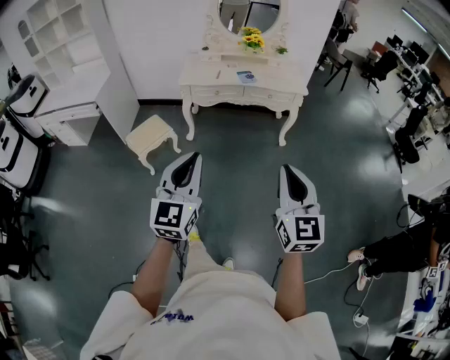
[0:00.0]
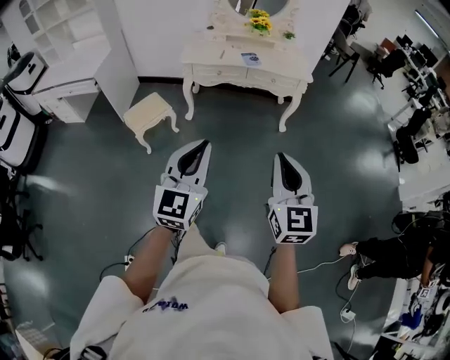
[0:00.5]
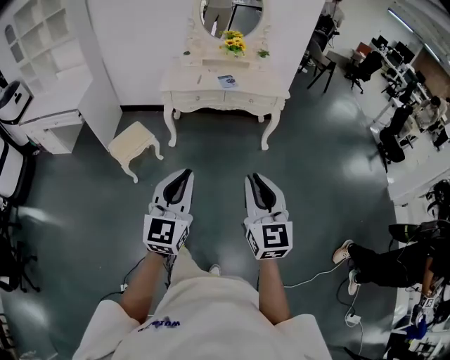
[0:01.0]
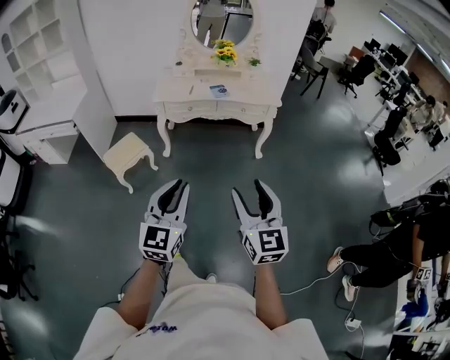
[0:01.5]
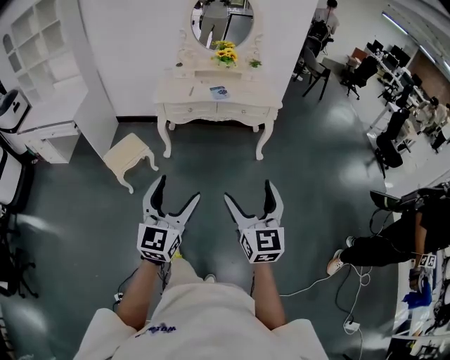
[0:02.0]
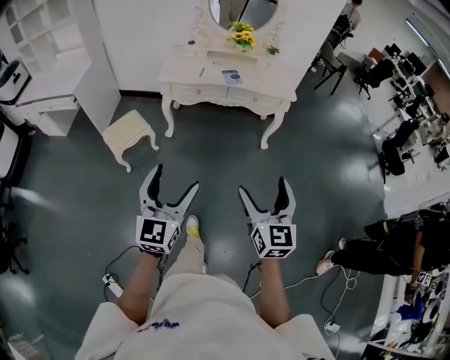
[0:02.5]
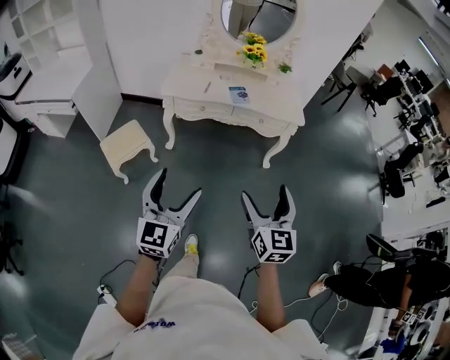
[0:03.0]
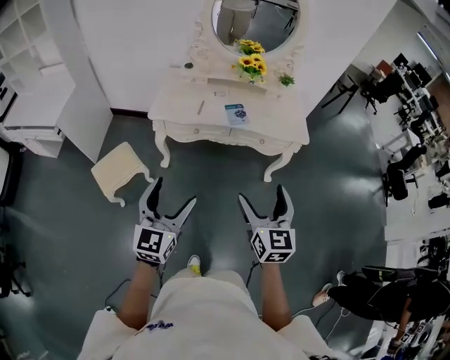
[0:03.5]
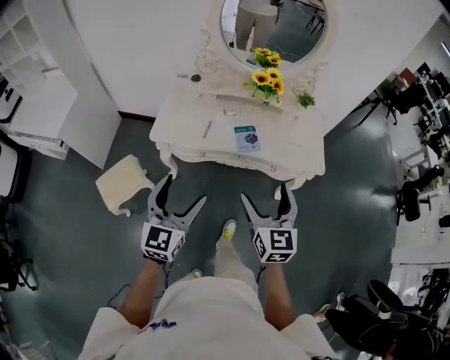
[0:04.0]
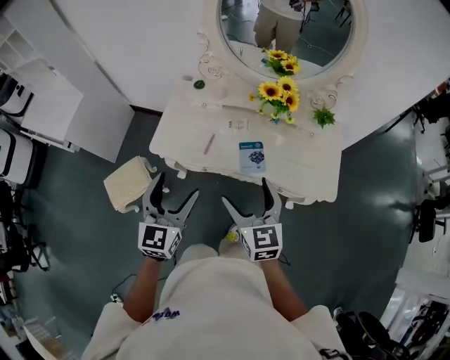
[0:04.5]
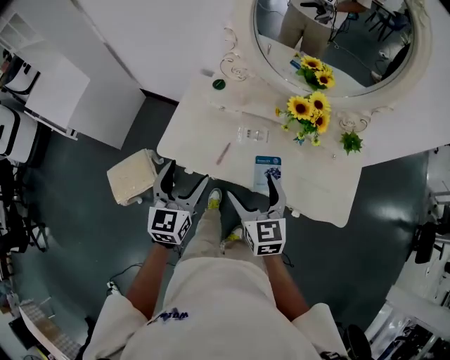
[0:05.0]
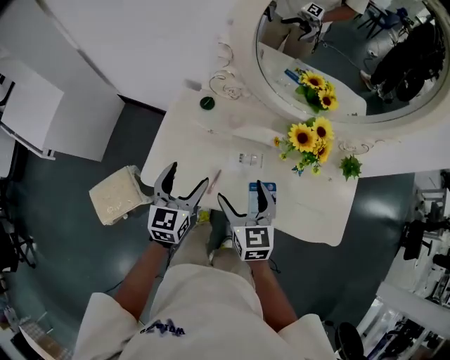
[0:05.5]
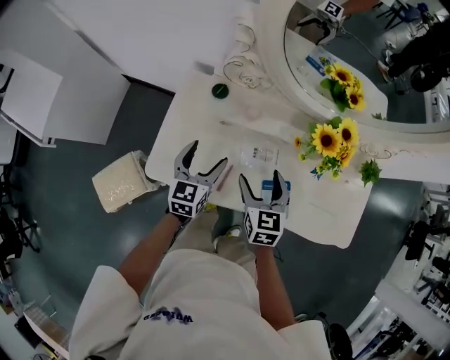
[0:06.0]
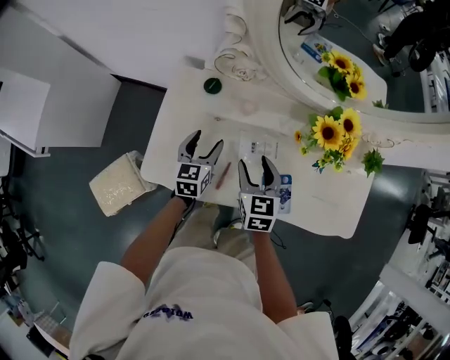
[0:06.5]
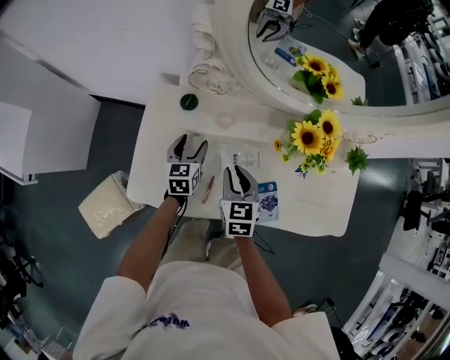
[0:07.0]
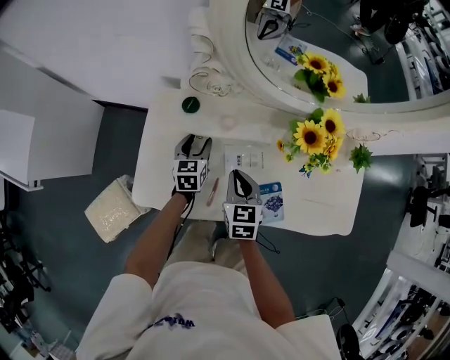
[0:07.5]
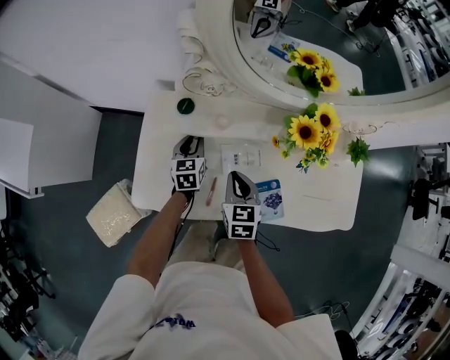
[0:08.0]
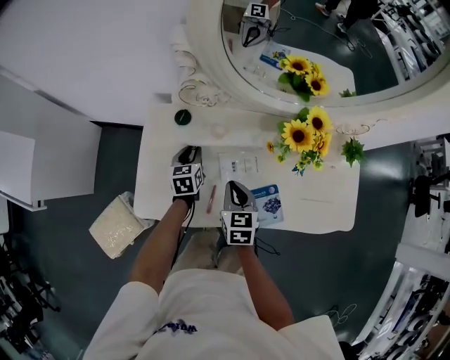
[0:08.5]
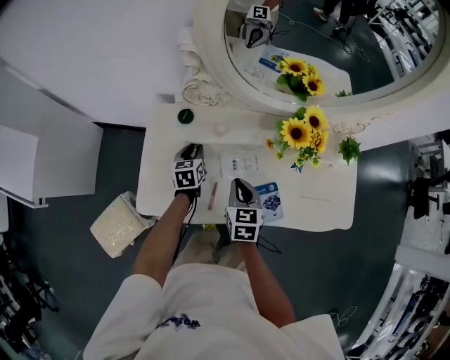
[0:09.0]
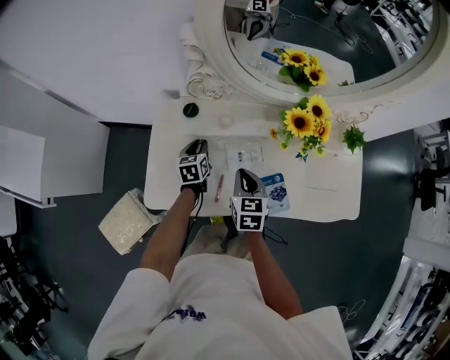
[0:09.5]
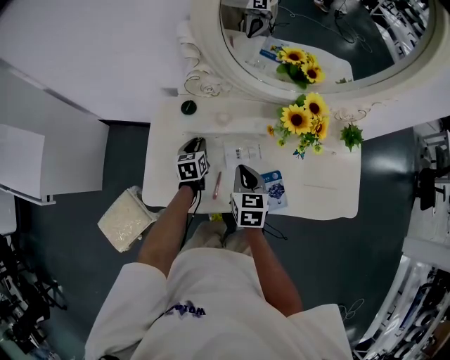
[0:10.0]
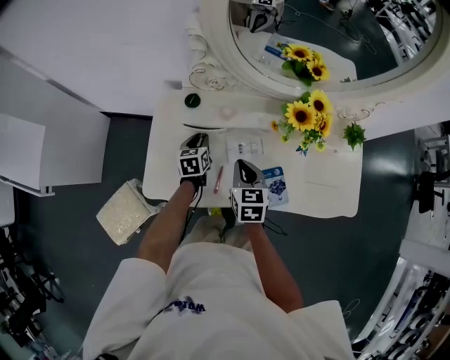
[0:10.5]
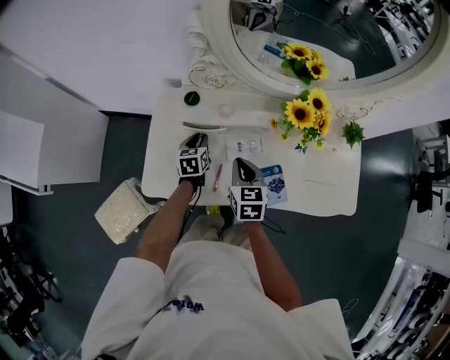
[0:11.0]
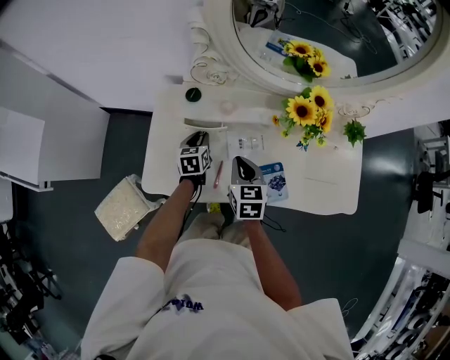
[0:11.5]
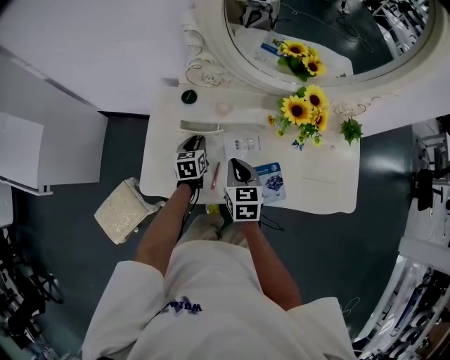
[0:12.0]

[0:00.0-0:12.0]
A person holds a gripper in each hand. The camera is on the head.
0:00.0 to 0:02.0: The left gripper moves to the right, about 5 cm, and opens up. Meanwhile the right gripper moves about 5 cm, and opens up.
0:02.0 to 0:04.0: Both grippers are carried forward, roughly 60 cm.
0:04.0 to 0:06.0: The pair of grippers is taken forward, roughly 50 cm. The grippers both shift downward by about 25 cm. The right gripper changes its angle by approximately 20 degrees, while the left gripper changes its angle by approximately 20 degrees.
0:06.0 to 0:08.0: The right gripper moves downward, about 5 cm, and closes. Meanwhile the left gripper goes roughly 15 cm downward and forward, and closes.
0:08.0 to 0:12.0: The grippers move only a little.

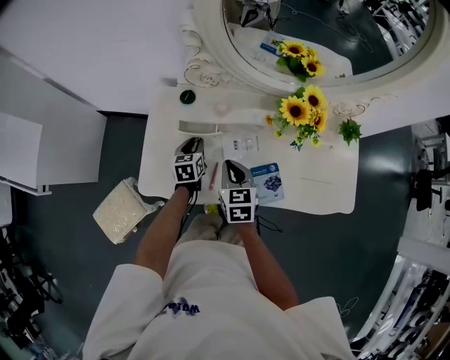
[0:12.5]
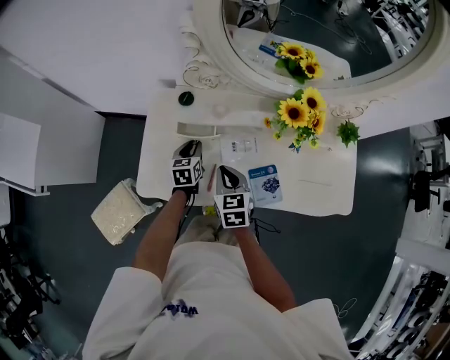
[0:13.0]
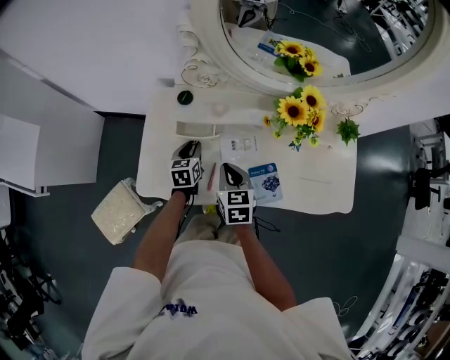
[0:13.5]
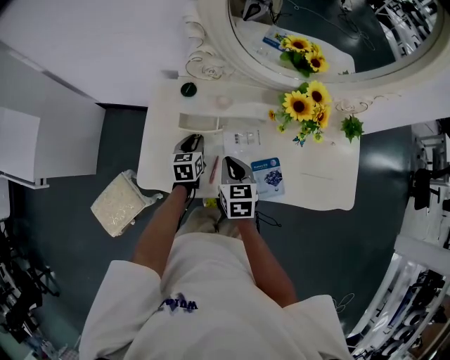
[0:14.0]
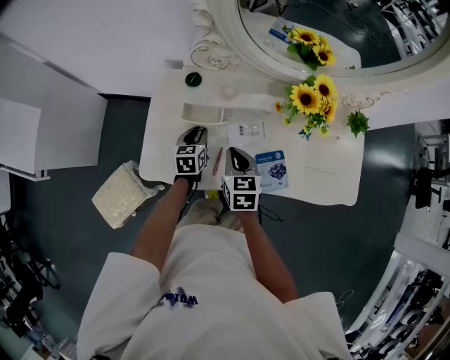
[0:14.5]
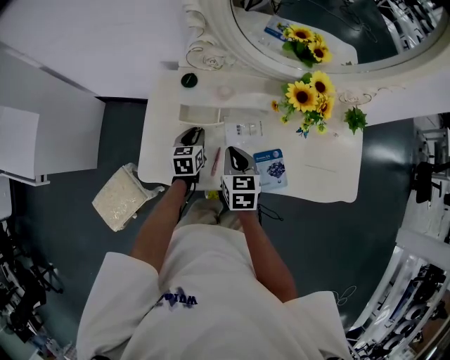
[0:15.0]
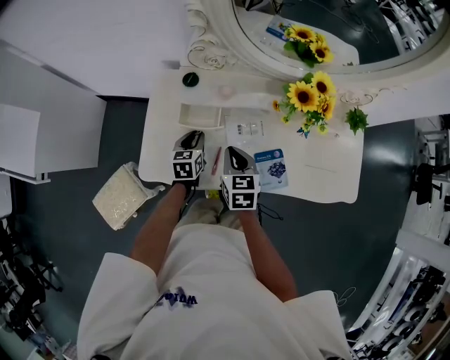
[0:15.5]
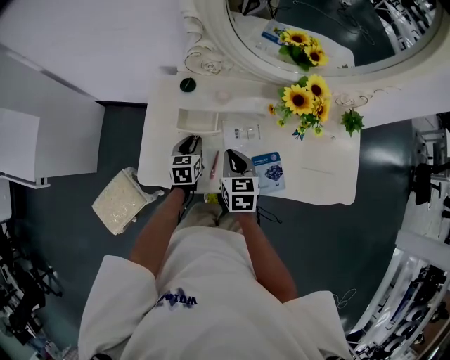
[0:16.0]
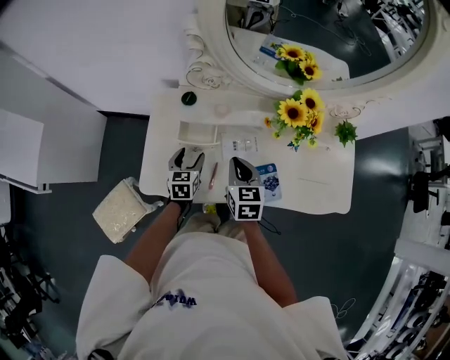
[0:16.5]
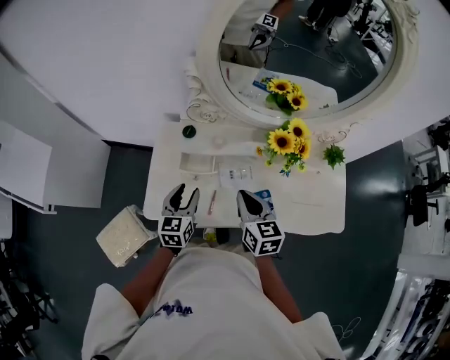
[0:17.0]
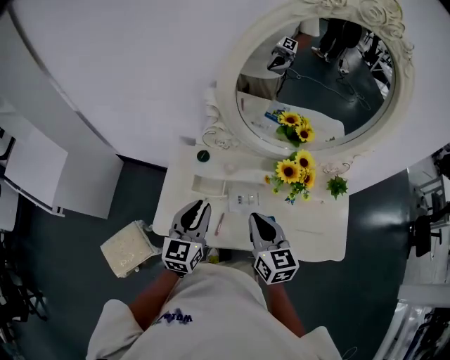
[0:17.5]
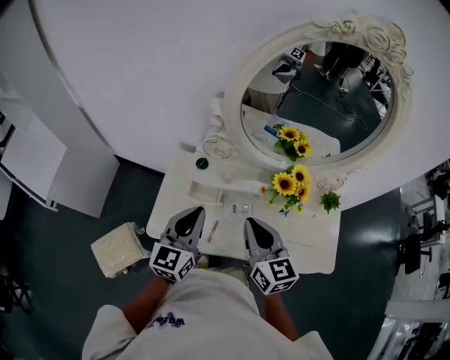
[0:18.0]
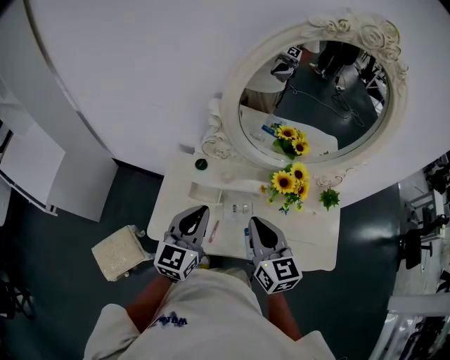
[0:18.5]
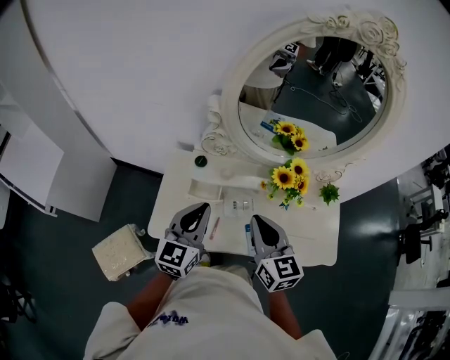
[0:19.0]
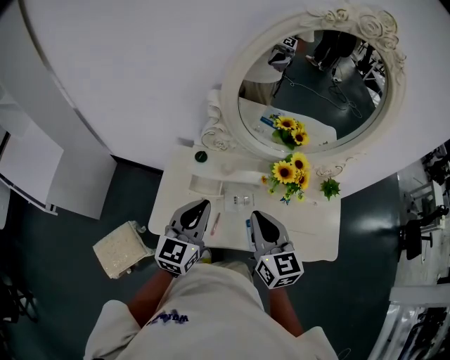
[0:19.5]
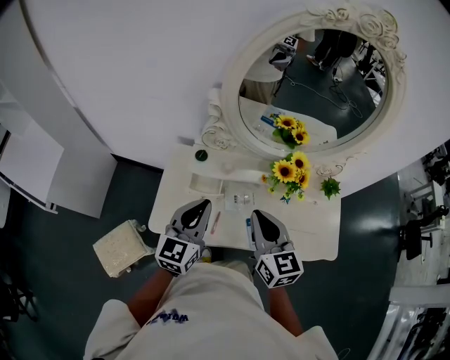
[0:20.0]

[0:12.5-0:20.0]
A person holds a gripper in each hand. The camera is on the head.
0:12.5 to 0:14.5: There are only small adjustments of the grippers.
0:14.5 to 0:16.5: The left gripper opens up.
0:16.5 to 0:18.0: The grippers both shift upward by roughly 30 cm. The right gripper turns by about 20 degrees. The left gripper tips its fingers upward by roughly 30 degrees, and closes its fingers.
0:18.0 to 0:20.0: There are only small adjustments of the grippers.

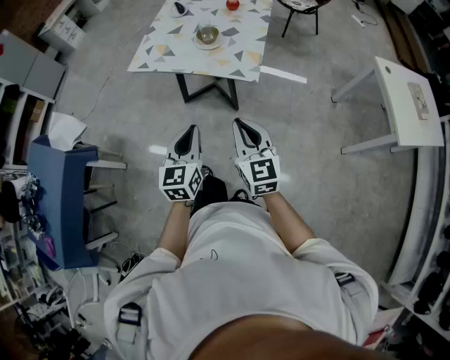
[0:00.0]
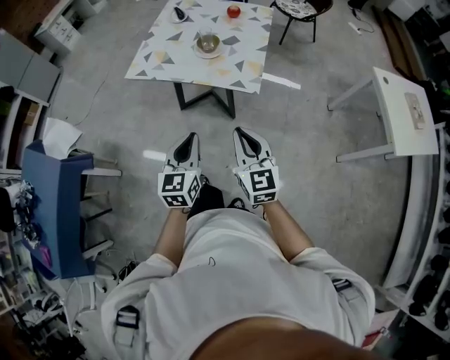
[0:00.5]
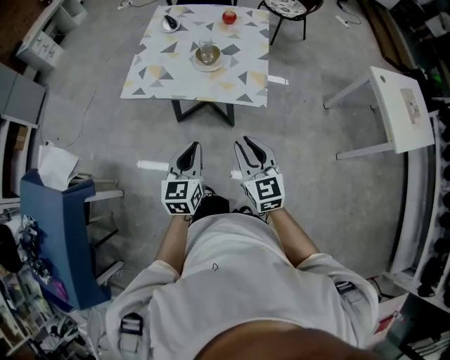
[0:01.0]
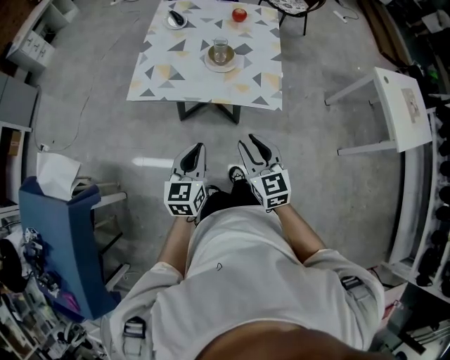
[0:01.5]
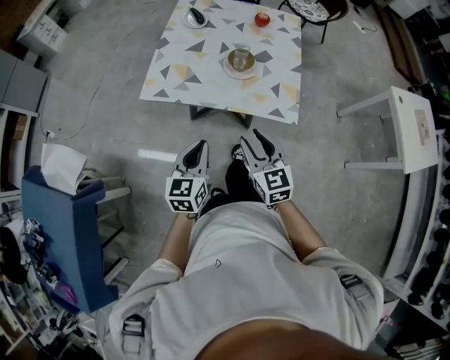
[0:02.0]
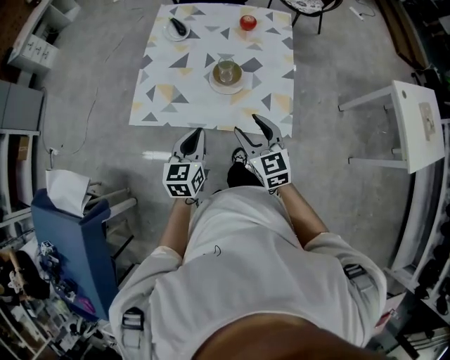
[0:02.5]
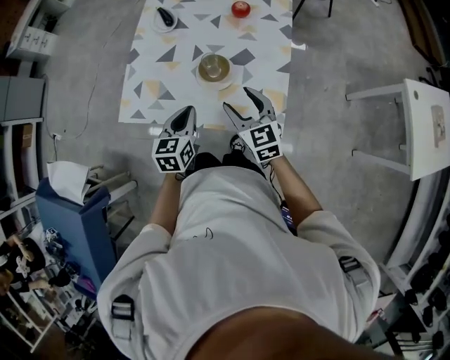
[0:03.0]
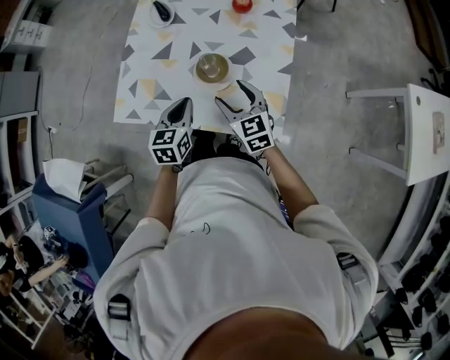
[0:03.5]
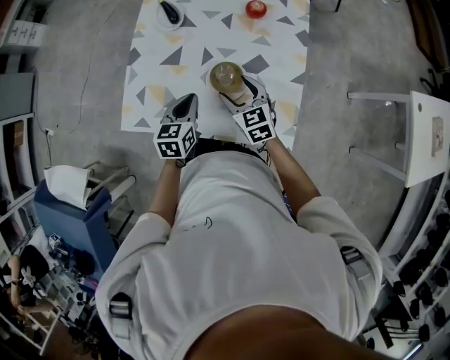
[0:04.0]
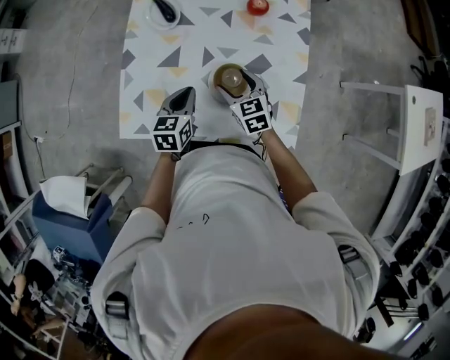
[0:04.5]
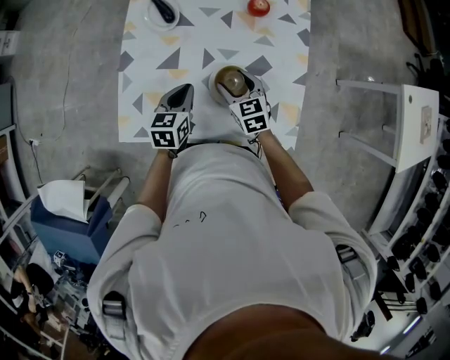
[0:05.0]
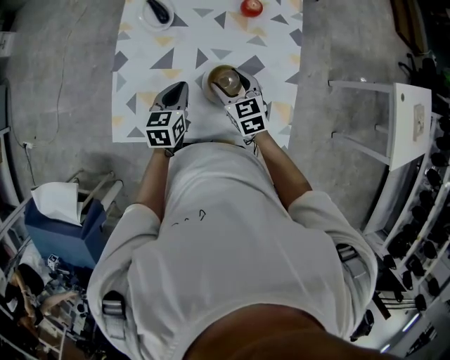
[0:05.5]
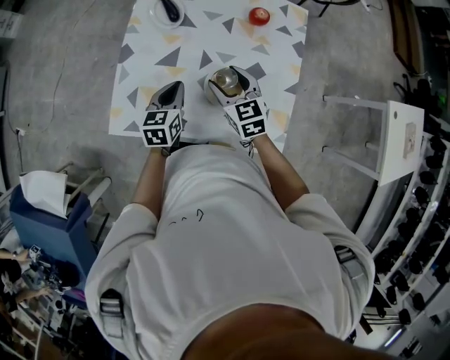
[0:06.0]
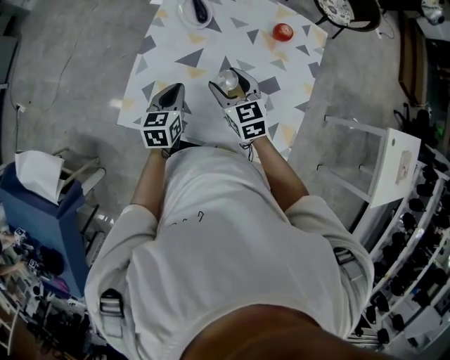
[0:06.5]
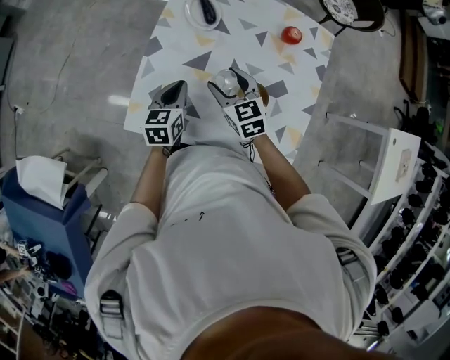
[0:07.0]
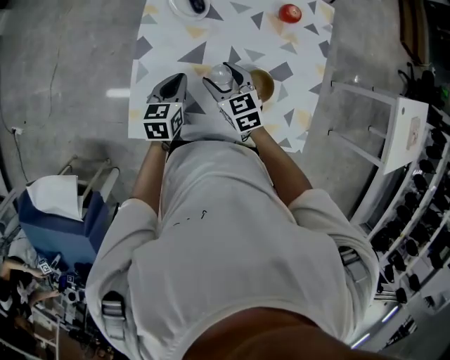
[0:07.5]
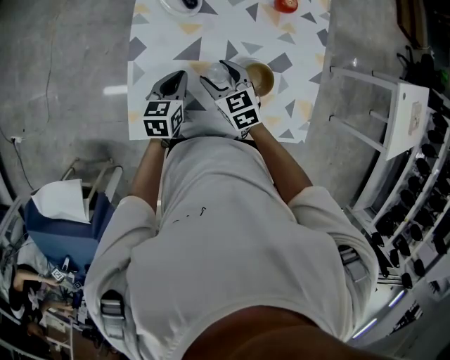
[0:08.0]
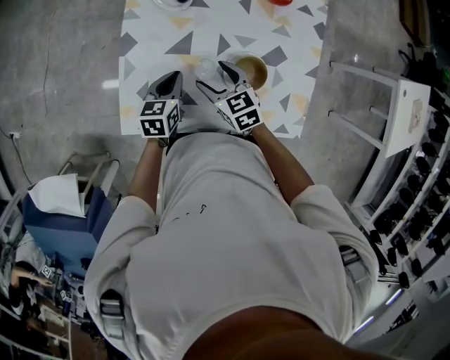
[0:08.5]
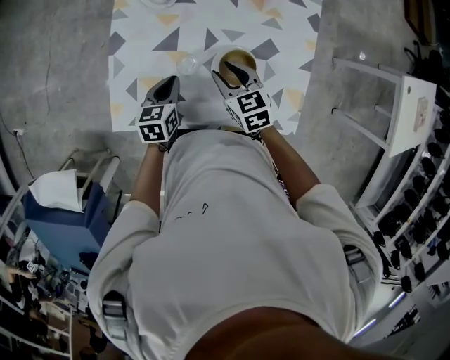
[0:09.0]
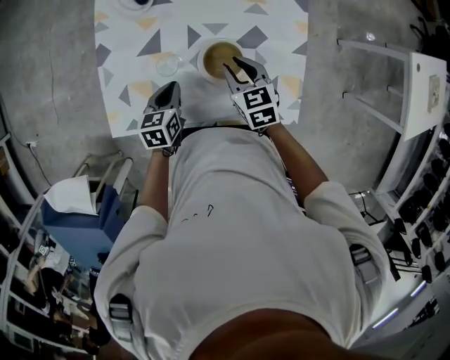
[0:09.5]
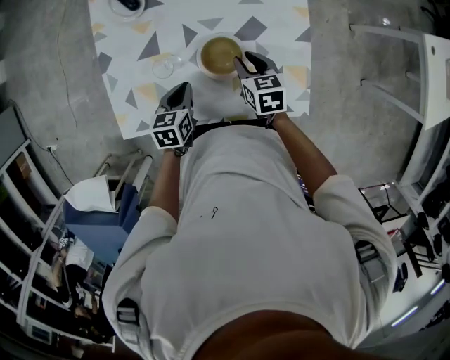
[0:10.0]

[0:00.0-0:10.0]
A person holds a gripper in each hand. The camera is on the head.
0:00.0 to 0:02.0: The grippers both shift forward and to the left by approximately 25 cm. The right gripper opens up.
0:02.0 to 0:04.0: The grippers both shift forward by approximately 35 cm. The right gripper opens its fingers.
0:04.0 to 0:06.0: Both grippers travel together forward and to the left, about 10 cm.
0:06.0 to 0:08.0: The left gripper shifts some 10 cm to the left, downward and forward; the right gripper moves to the left and downward, roughly 15 cm.
0:08.0 to 0:10.0: The right gripper goes roughly 25 cm to the right, rotates roughly 30 degrees, and closes its fingers; the left gripper shifts some 15 cm to the right and backward.
